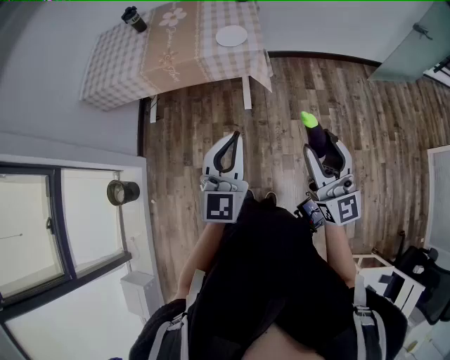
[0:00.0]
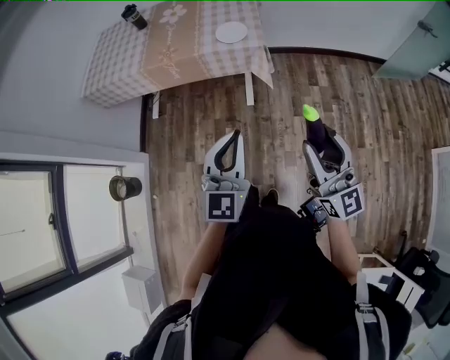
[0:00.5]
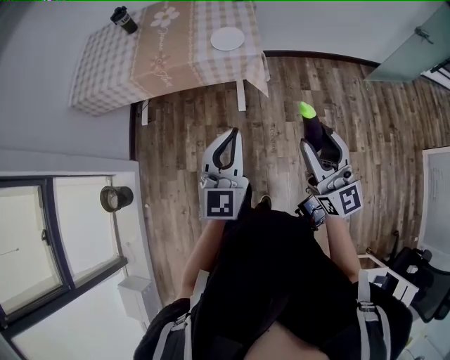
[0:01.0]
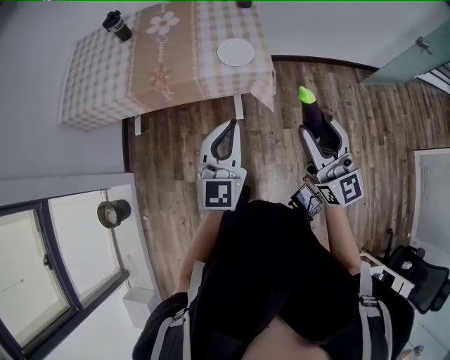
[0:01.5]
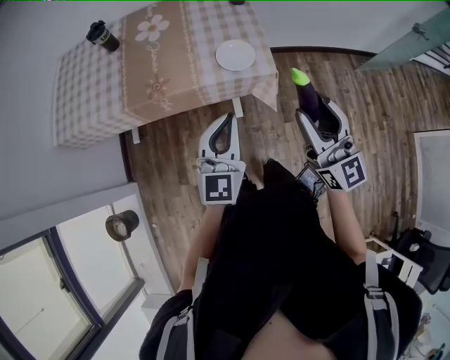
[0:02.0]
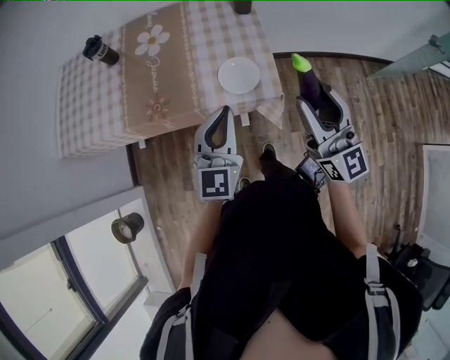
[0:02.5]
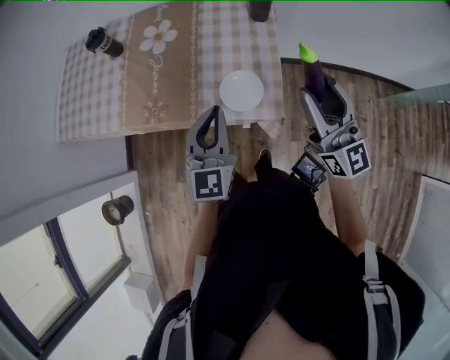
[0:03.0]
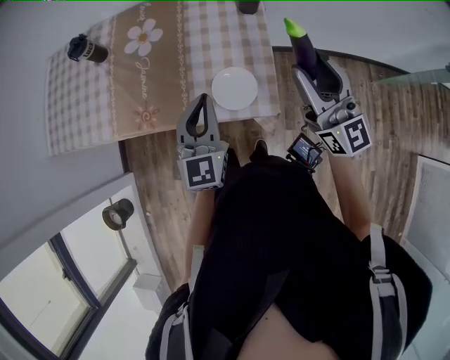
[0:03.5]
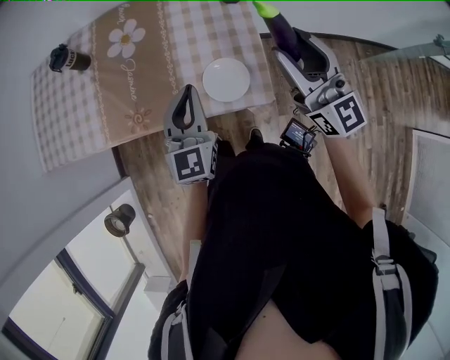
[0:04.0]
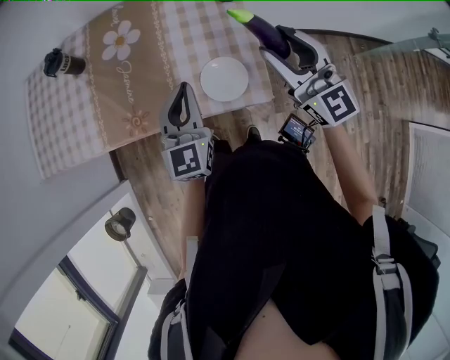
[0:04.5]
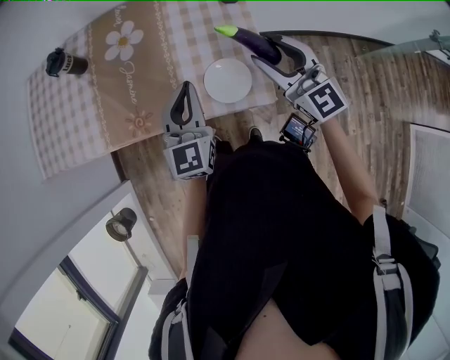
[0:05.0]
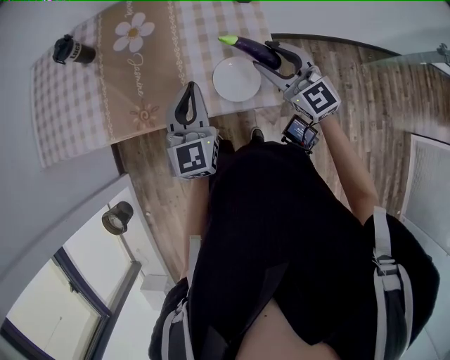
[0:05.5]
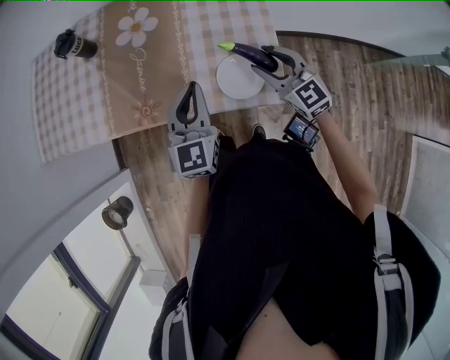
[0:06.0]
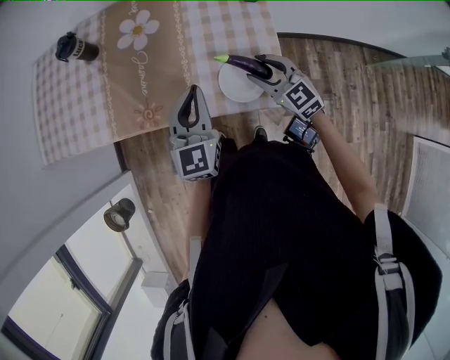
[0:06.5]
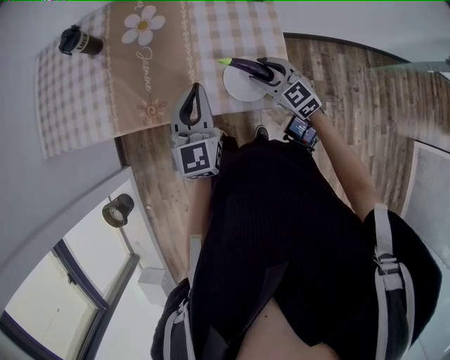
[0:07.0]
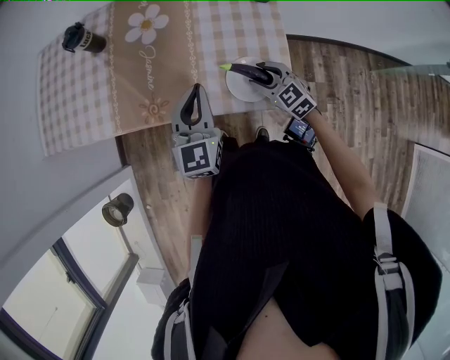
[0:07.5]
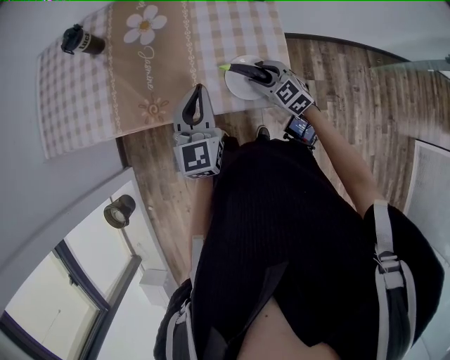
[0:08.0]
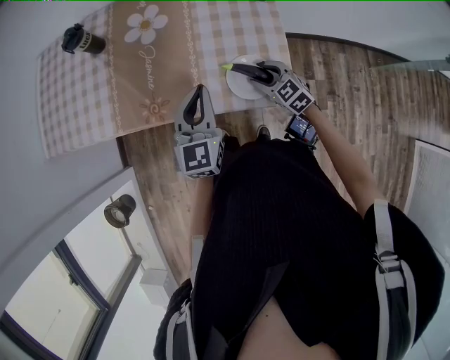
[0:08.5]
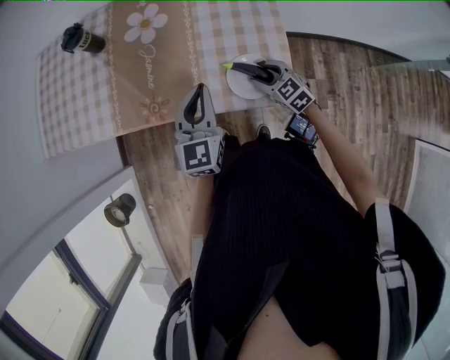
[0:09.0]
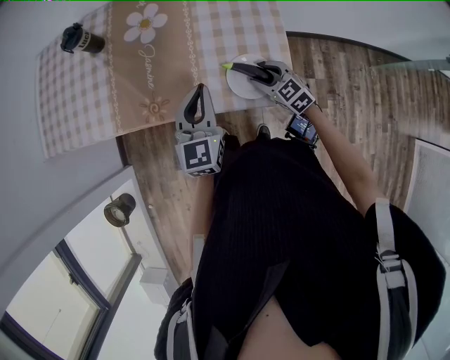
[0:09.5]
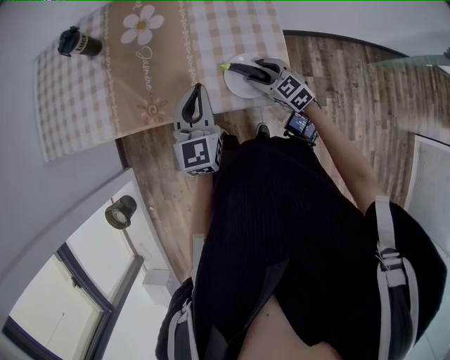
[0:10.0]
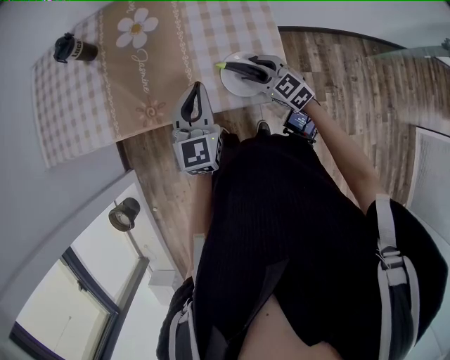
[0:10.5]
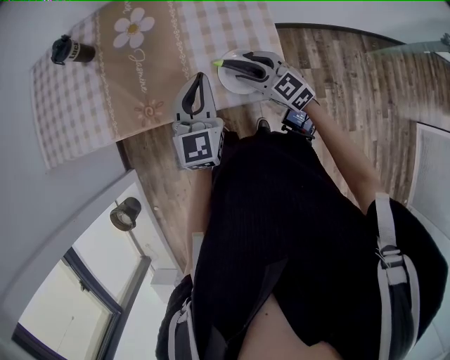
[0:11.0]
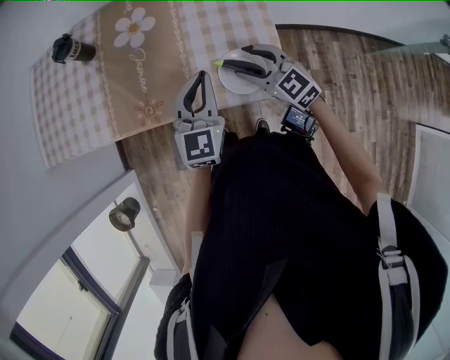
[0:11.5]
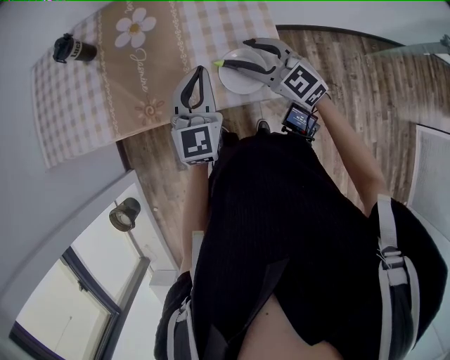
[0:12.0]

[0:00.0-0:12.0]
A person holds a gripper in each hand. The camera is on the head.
0:00.0 to 0:02.0: The grippers both shift forward by approximately 30 cm.
0:02.0 to 0:04.0: The two grippers go roughly 30 cm forward.
0:04.0 to 0:06.0: The left gripper shifts by about 5 cm, while the right gripper heads downward, covering approximately 20 cm, and swivels about 30 degrees.
0:06.0 to 0:08.0: The right gripper moves downward, some 15 cm.
0:08.0 to 0:10.0: The grippers move only a little.
0:10.0 to 0:12.0: The left gripper shifts by approximately 5 cm; the right gripper shifts about 15 cm upward.

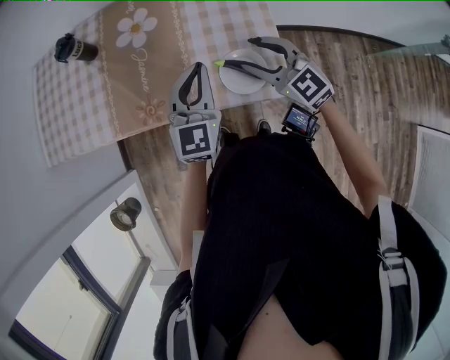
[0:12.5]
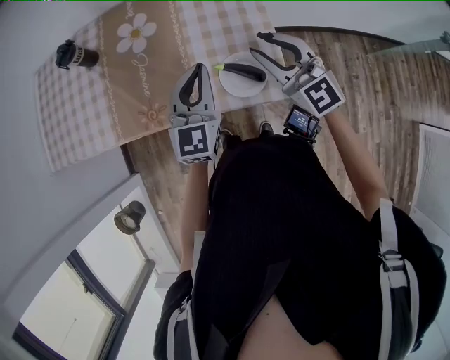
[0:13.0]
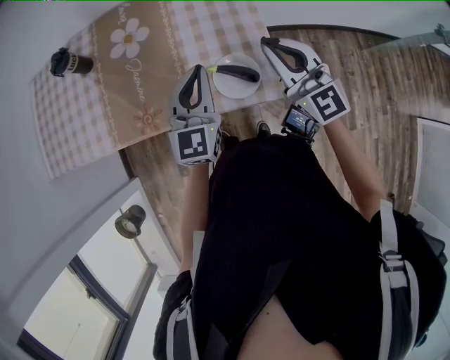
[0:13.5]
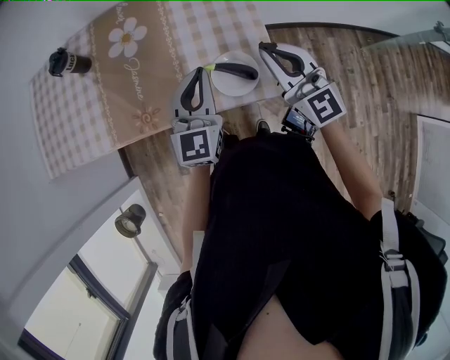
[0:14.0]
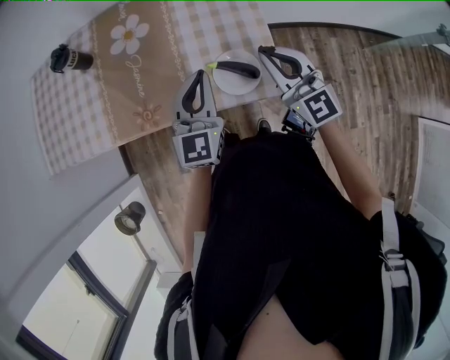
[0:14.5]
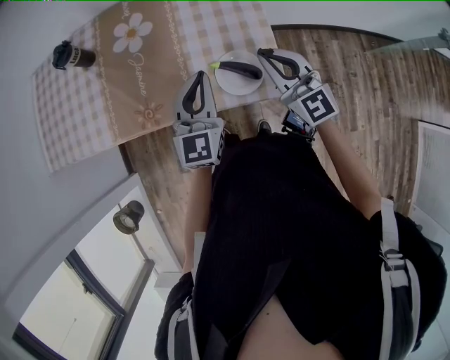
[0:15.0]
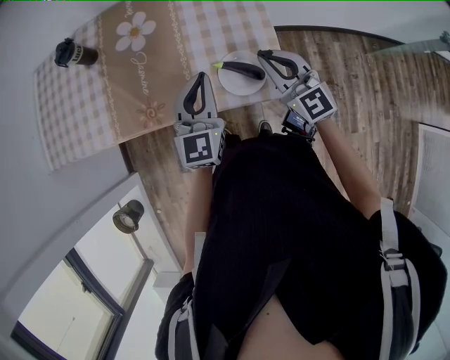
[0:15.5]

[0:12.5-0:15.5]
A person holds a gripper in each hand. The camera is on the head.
0:12.5 to 0:14.0: The right gripper shifts some 10 cm upward and to the right, rotates some 20 degrees, and closes.
0:14.0 to 0:15.5: The right gripper moves downward, roughly 5 cm.

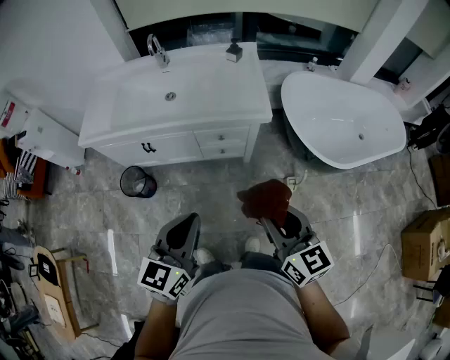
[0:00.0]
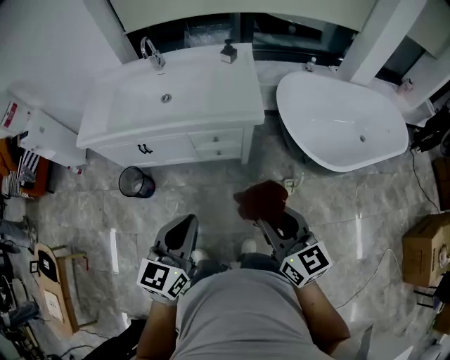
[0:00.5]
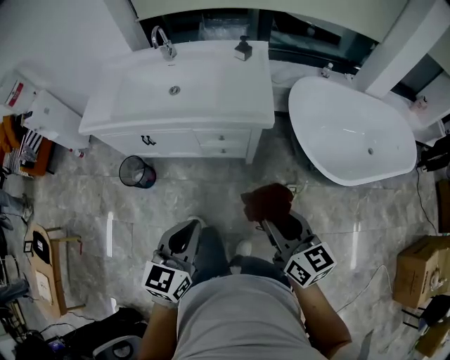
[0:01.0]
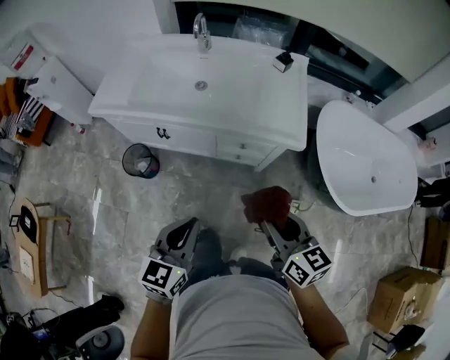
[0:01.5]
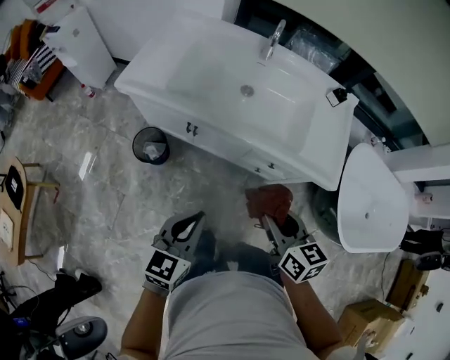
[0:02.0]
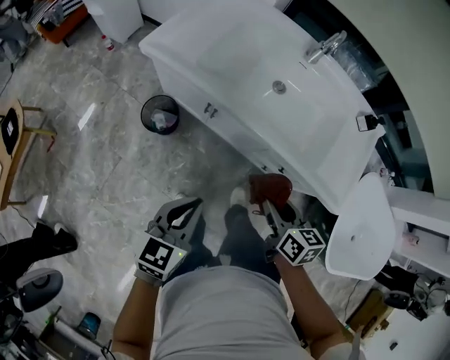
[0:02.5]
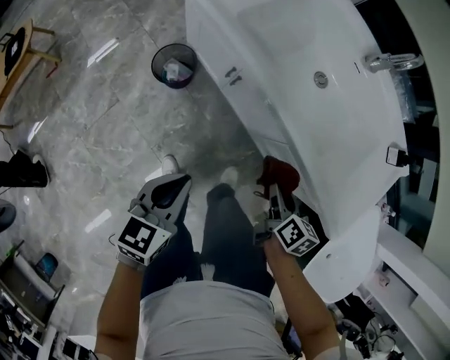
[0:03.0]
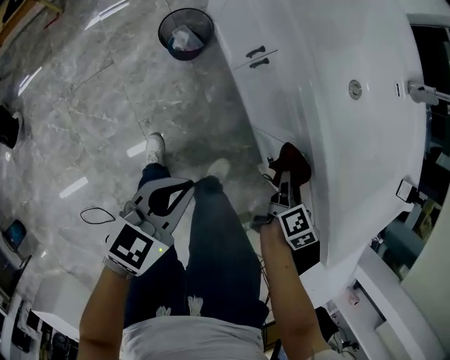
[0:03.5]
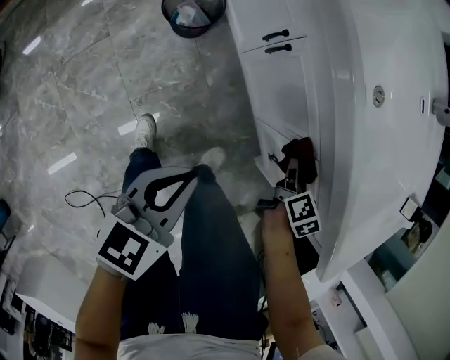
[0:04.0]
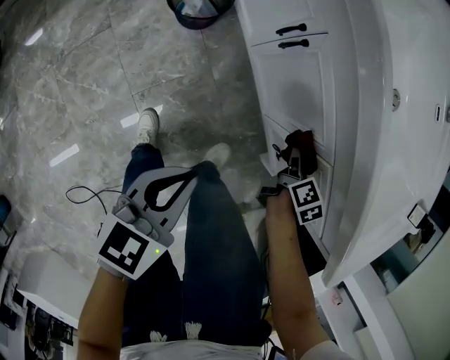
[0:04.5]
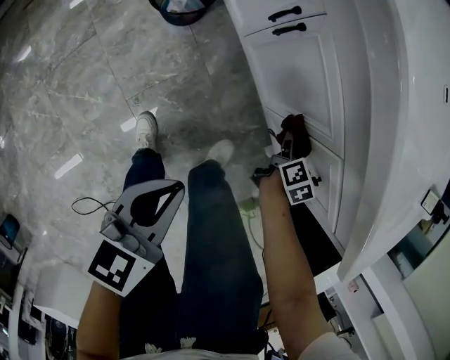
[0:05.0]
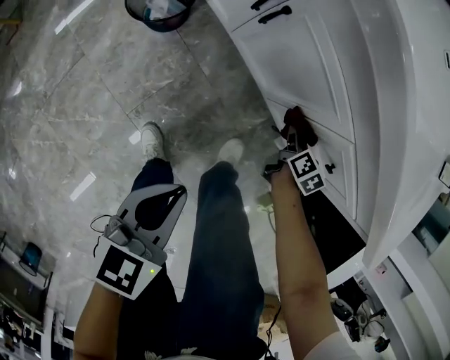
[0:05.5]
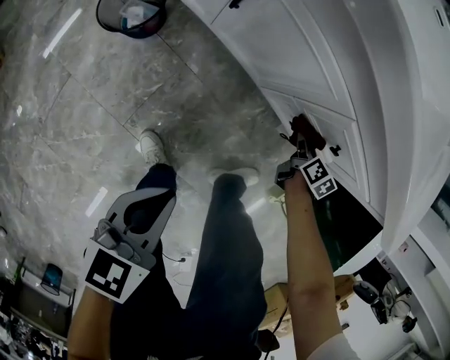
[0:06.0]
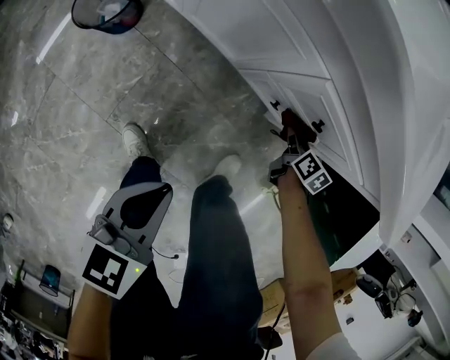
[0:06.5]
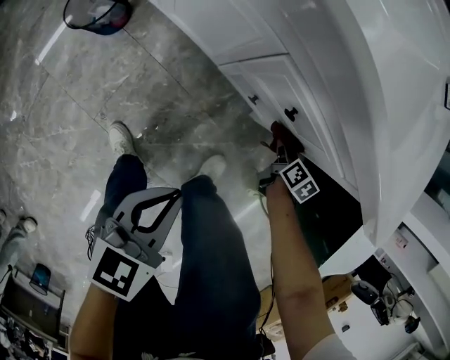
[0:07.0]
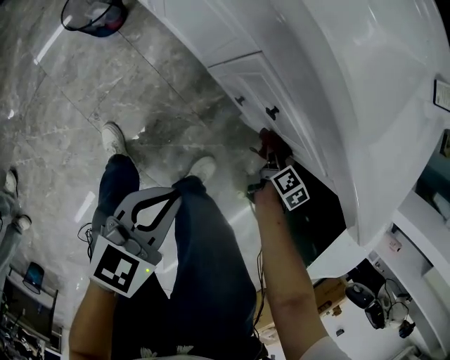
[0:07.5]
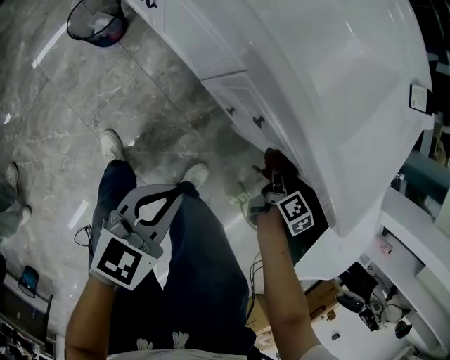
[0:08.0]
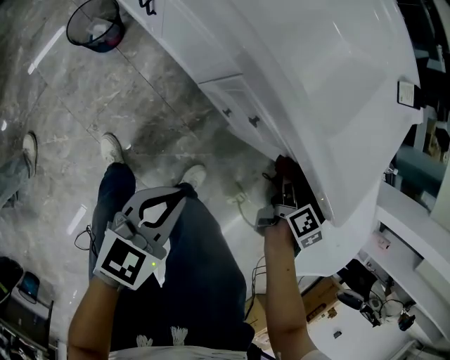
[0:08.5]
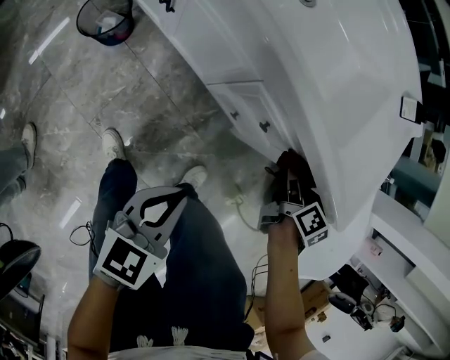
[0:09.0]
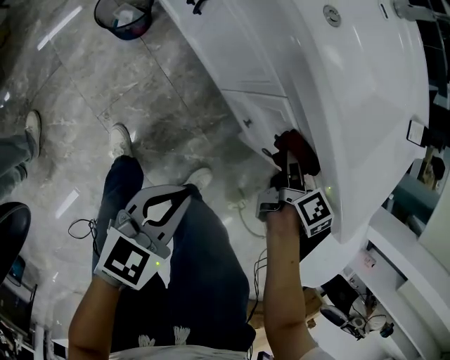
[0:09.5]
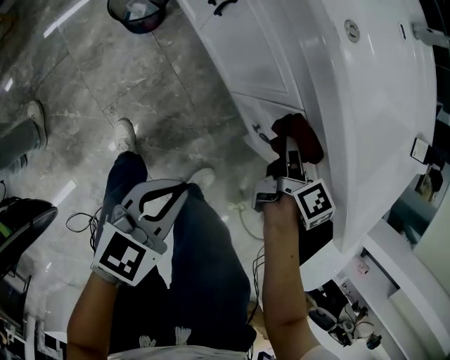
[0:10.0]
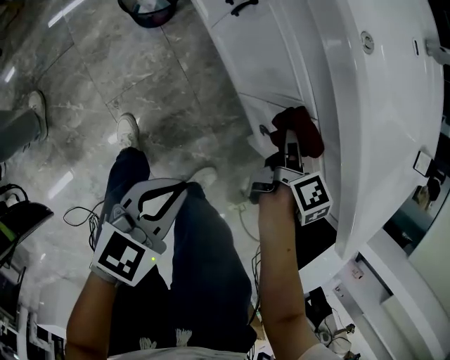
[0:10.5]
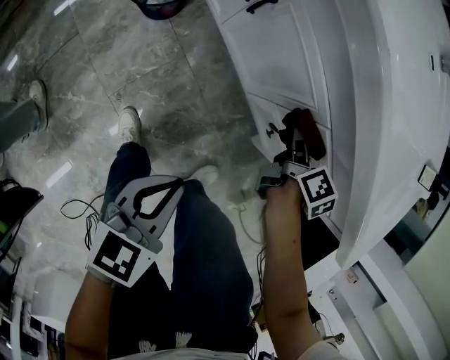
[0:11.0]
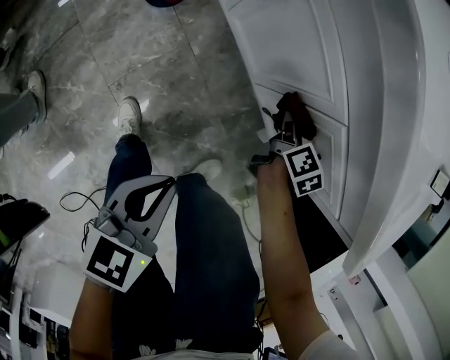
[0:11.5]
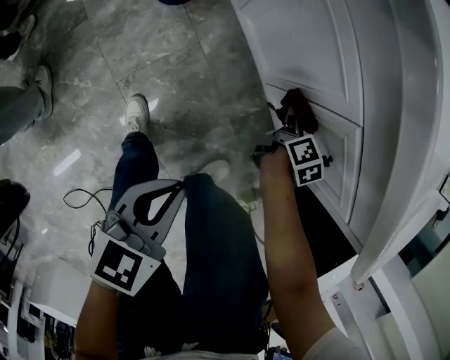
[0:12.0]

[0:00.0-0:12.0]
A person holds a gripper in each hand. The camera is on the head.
0:00.0 to 0:02.0: The left gripper travels to the left, forward and downward by some 25 cm; the right gripper is displaced forward, to the left and downward by roughly 30 cm, and changes its angle by some 30 degrees.
0:02.0 to 0:04.0: The left gripper shifts approximately 25 cm downward, and turns by approximately 40 degrees; the right gripper moves downward and forward, some 40 cm.
0:04.0 to 0:06.0: The right gripper shifts some 20 cm downward and to the right. Meanwhile the left gripper is displaced downward by approximately 10 cm, and turns by roughly 30 degrees.
0:06.0 to 0:08.0: The right gripper heads to the right and upward, covering roughly 20 cm; the left gripper moves to the right, approximately 20 cm.
0:08.0 to 0:10.0: The left gripper goes approximately 10 cm to the left, while the right gripper shifts roughly 25 cm to the left.
0:10.0 to 0:12.0: The left gripper travels downward by approximately 5 cm. Meanwhile the right gripper shifts some 20 cm downward.
